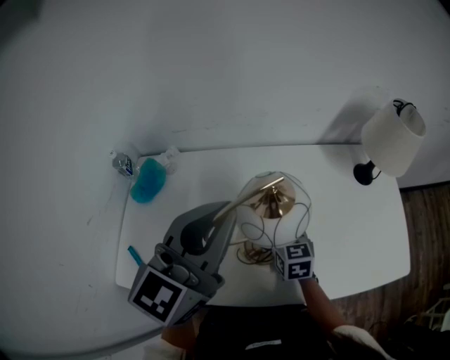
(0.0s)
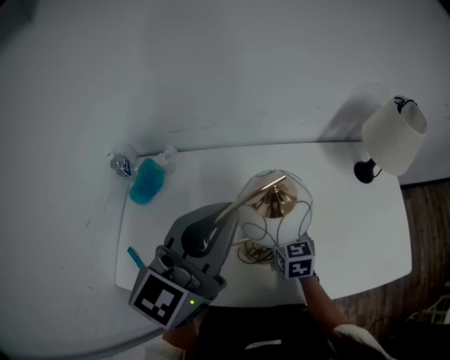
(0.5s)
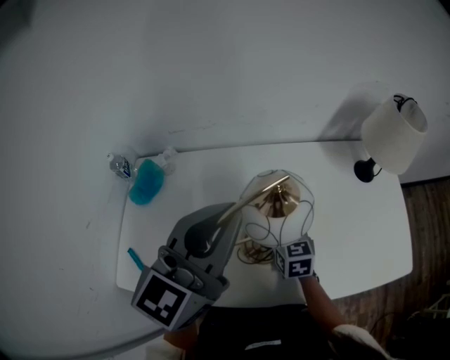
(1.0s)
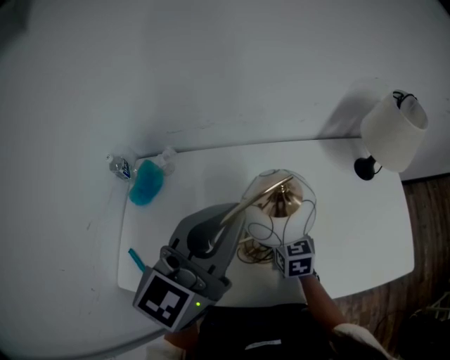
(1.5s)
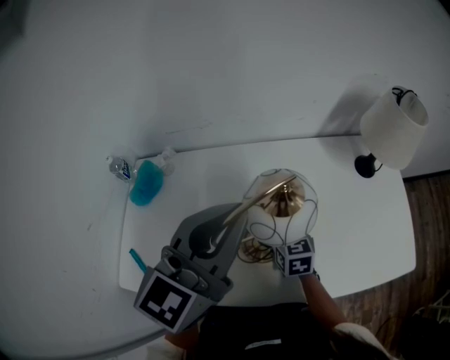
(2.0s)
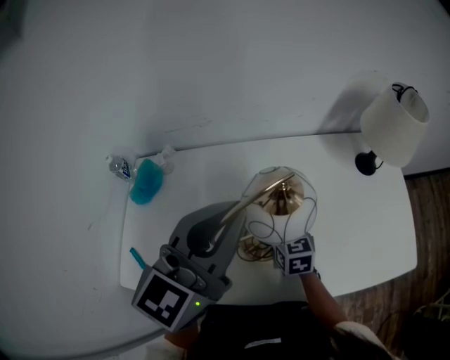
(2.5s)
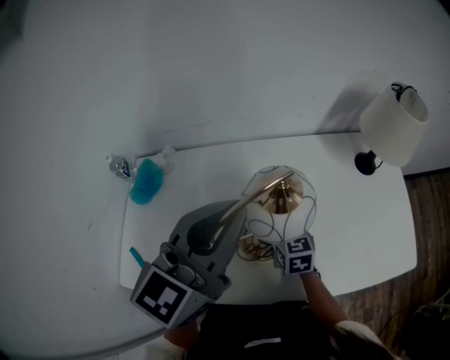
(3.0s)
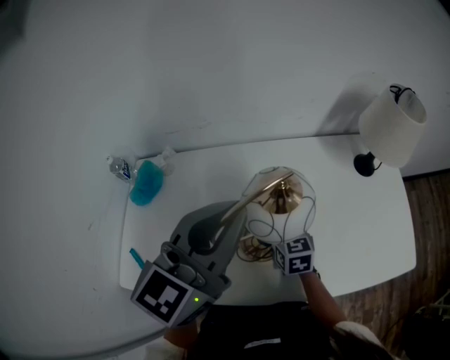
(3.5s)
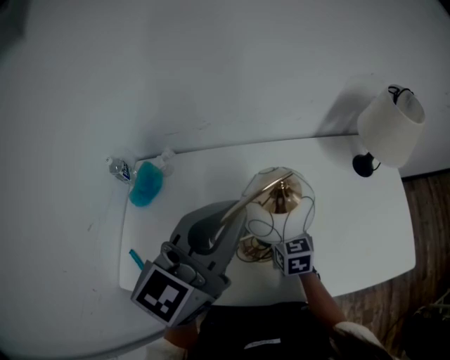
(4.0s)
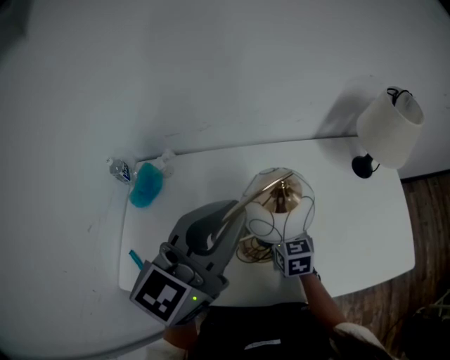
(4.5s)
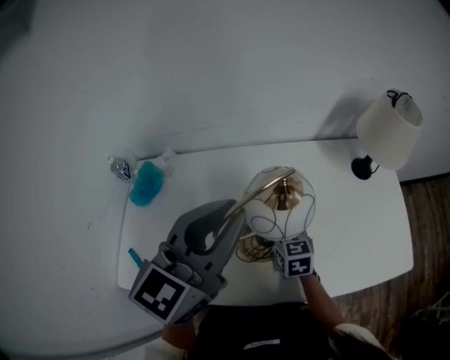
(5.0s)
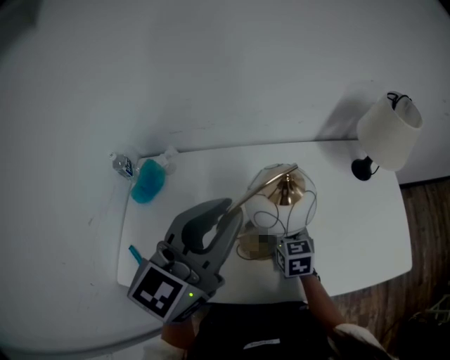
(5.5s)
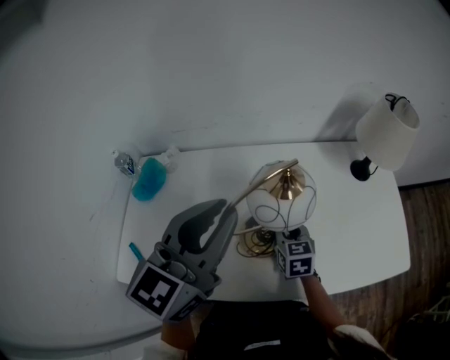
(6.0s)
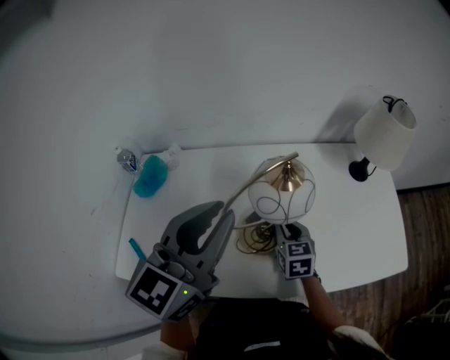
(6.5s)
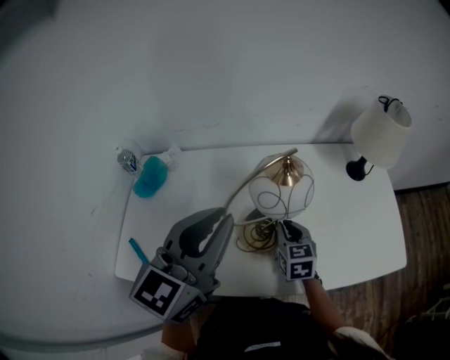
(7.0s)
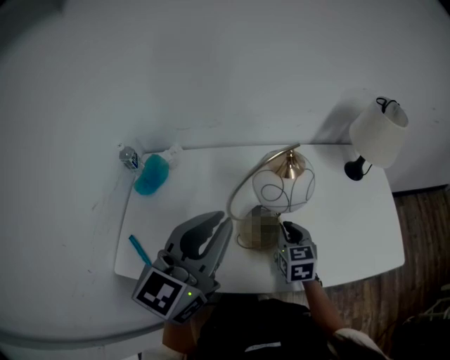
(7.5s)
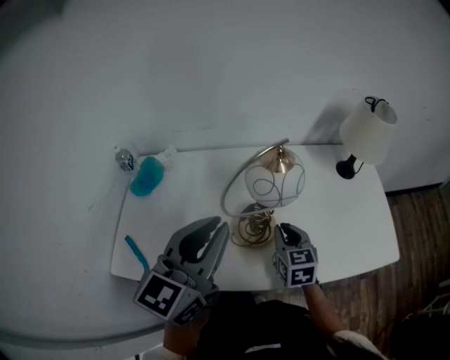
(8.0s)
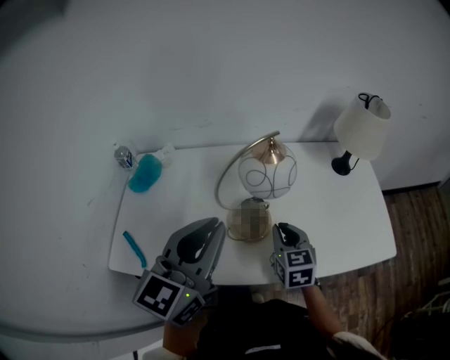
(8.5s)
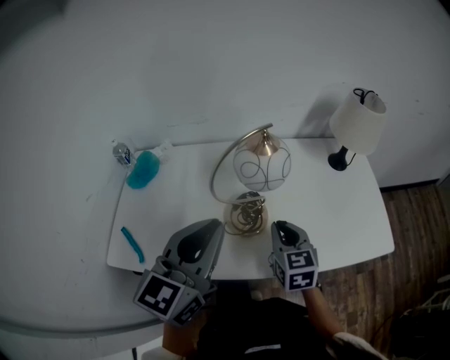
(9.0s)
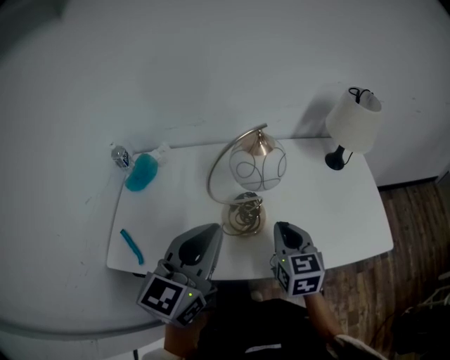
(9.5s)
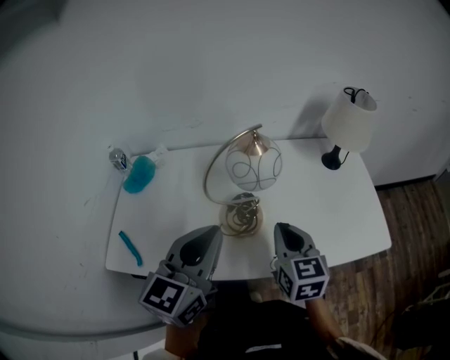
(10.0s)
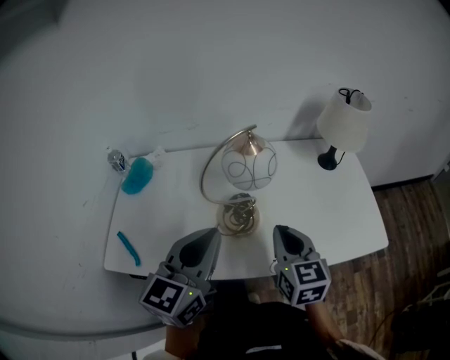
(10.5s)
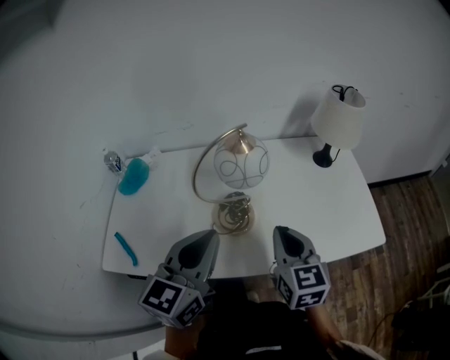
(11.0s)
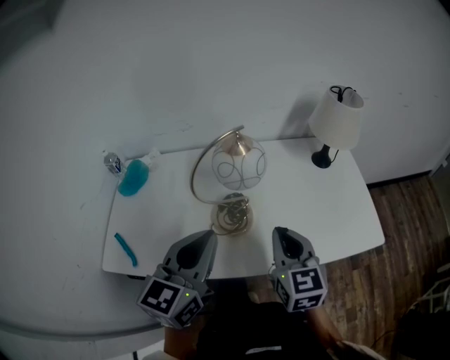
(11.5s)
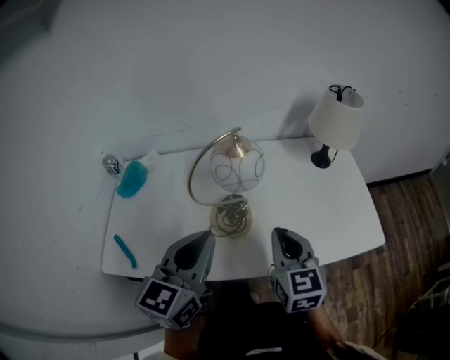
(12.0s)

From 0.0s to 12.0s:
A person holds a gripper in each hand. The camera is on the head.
From 0.0s to 2.0s: The grippers stay close to where they were, moving slightly.
From 2.0s to 4.0s: Both grippers stay put.
From 4.0s to 6.0s: The grippers stay close to where they were, moving slightly.
From 6.0s to 8.0s: The left gripper goes approximately 5 cm backward. The right gripper heads backward and upward, covering approximately 10 cm.
From 8.0s to 10.0s: The left gripper shifts by about 5 cm, while the right gripper shifts about 10 cm upward and backward.
From 10.0s to 12.0s: There are only small adjustments of the grippers.

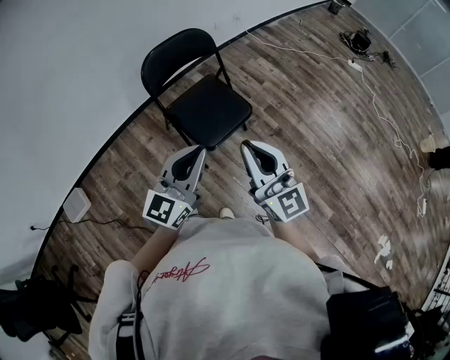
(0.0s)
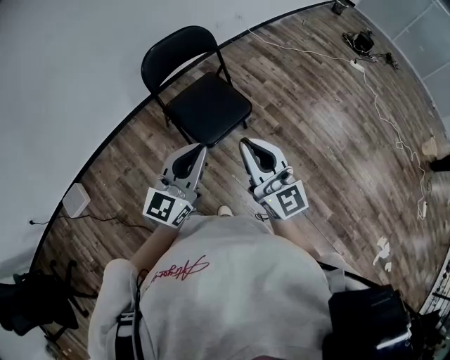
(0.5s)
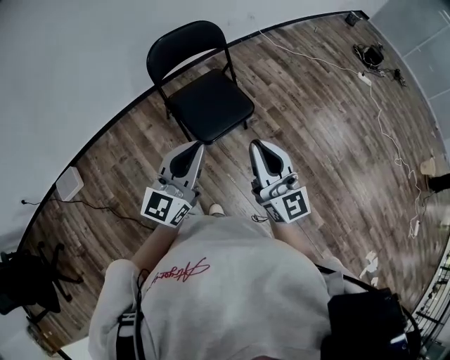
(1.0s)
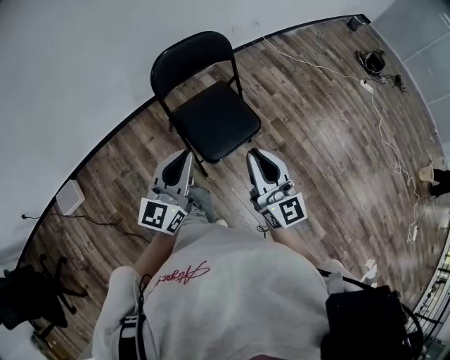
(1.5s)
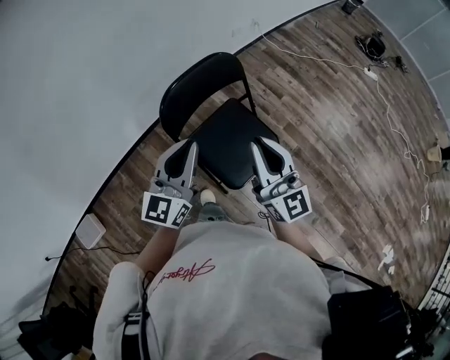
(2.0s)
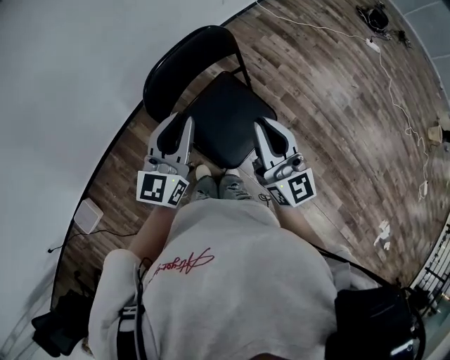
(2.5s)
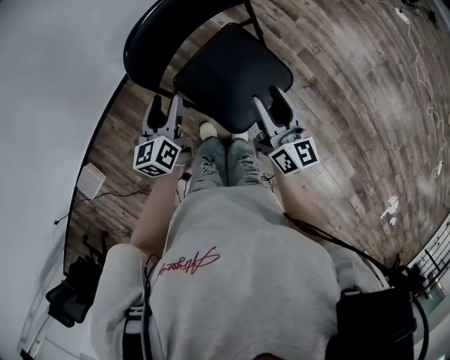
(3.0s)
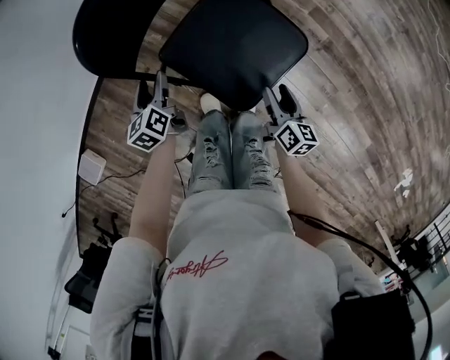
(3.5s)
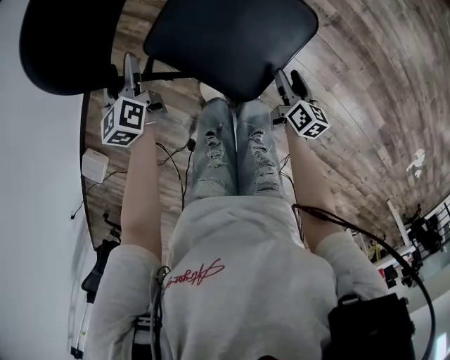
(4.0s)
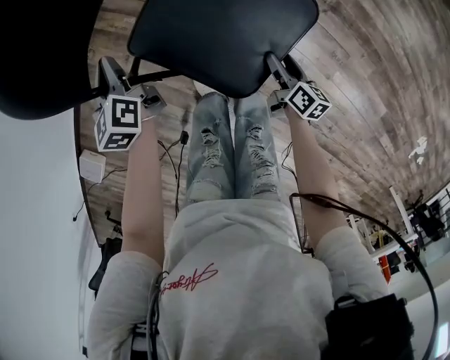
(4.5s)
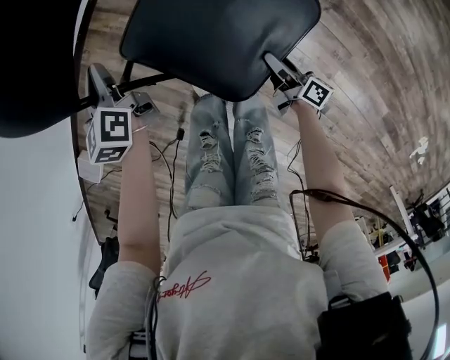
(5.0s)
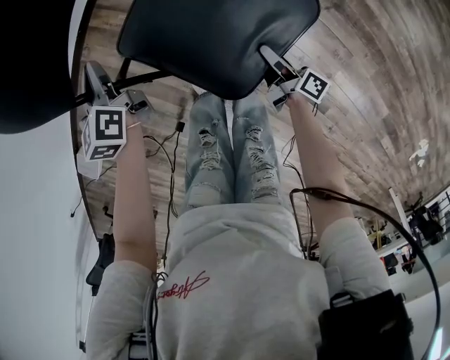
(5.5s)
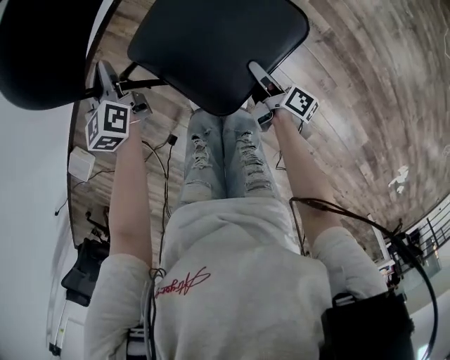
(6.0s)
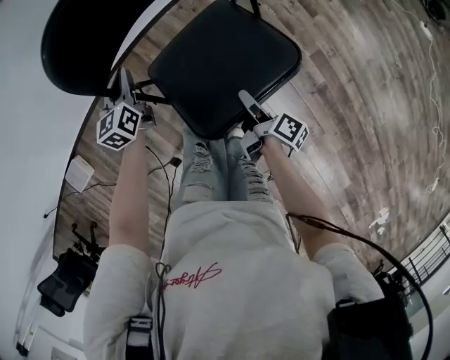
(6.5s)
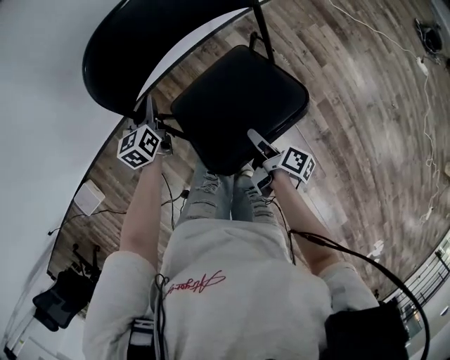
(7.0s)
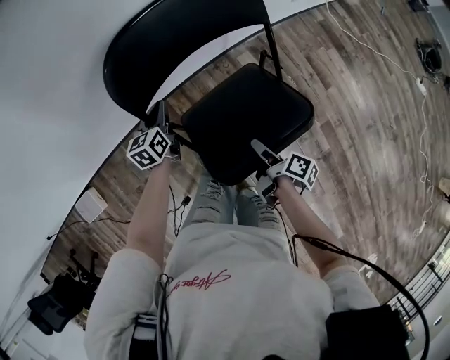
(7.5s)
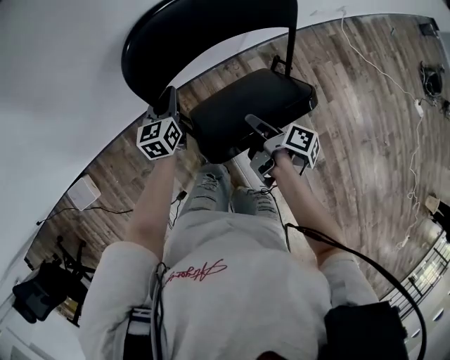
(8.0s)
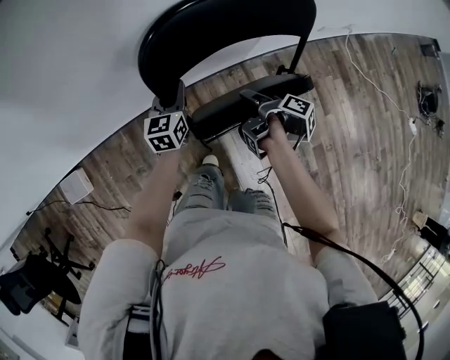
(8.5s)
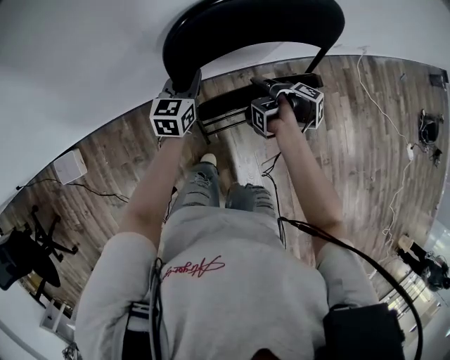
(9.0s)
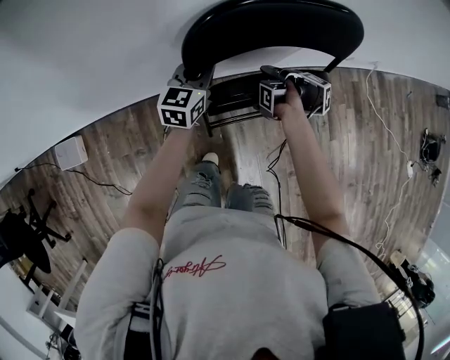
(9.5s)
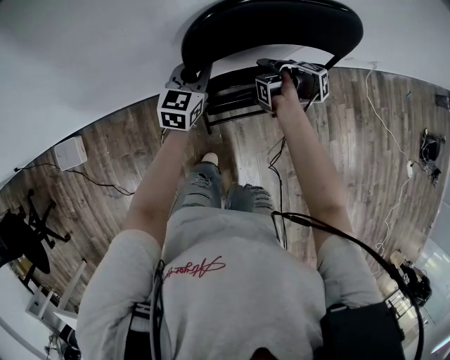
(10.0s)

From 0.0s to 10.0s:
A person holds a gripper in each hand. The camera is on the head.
From 0.0s to 2.0s: The right gripper travels forward by some 25 cm, while the left gripper travels forward and to the left by roughly 30 cm.
From 2.0s to 4.0s: The grippers both shift downward by about 50 cm. The right gripper tips its fingers downward by approximately 50 degrees, and opens up, while the left gripper points its fingers approximately 40 degrees further downward, and opens its fingers.
From 4.0s to 6.0s: The right gripper moves forward, roughly 10 cm, and turns by roughly 40 degrees. The left gripper shifts by some 5 cm, and closes.
From 6.0s to 8.0s: The right gripper moves forward, upward and to the left, approximately 40 cm, changes its angle by approximately 20 degrees, and closes; the left gripper moves forward and to the left, about 20 cm.
From 8.0s to 10.0s: The right gripper travels forward by approximately 20 cm; the left gripper goes roughly 5 cm upward.

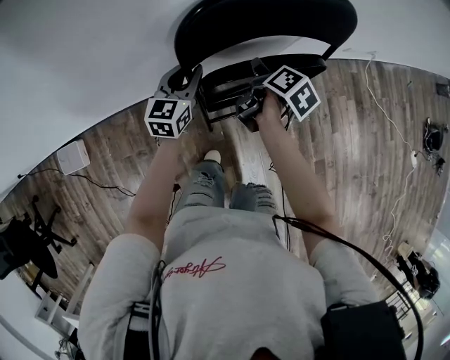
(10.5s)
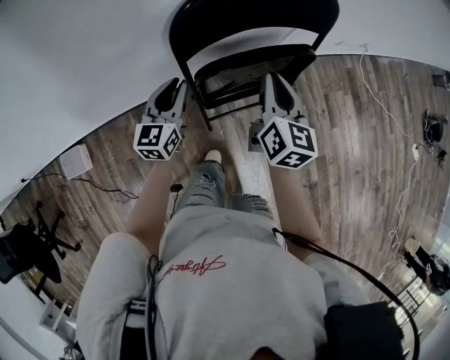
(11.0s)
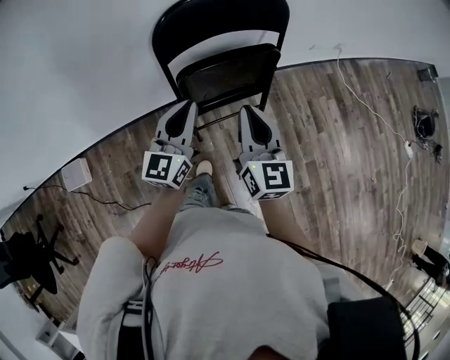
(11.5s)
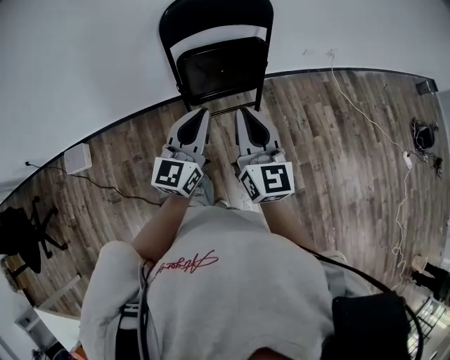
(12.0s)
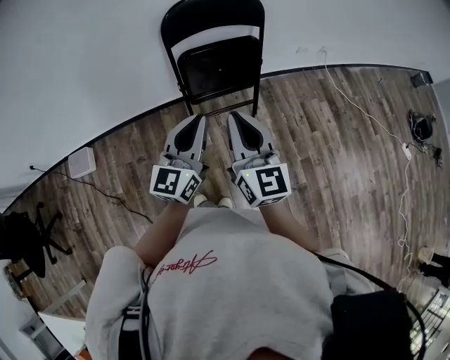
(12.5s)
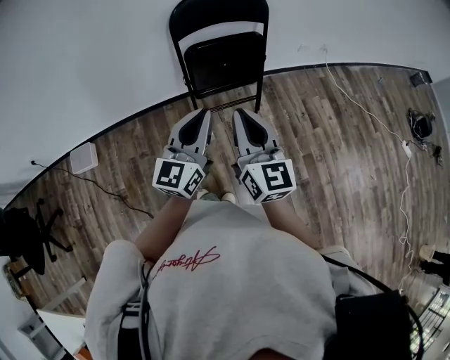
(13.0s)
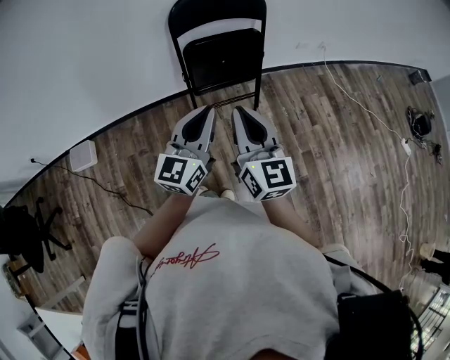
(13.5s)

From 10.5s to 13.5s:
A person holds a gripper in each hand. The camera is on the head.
From 10.5s to 12.0s: The left gripper travels backward, upward and to the right by approximately 40 cm, and swivels approximately 20 degrees, while the right gripper moves backward and upward, some 40 cm, points its fingers some 40 degrees further upward, and closes up.
From 12.0s to 13.5s: The grippers both shift backward by roughly 10 cm.

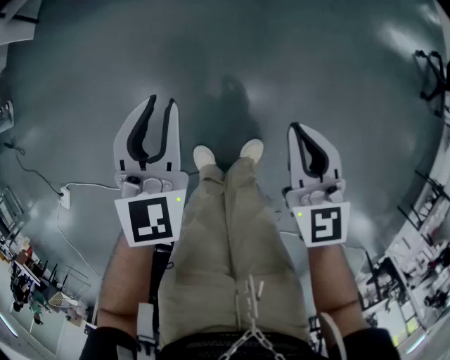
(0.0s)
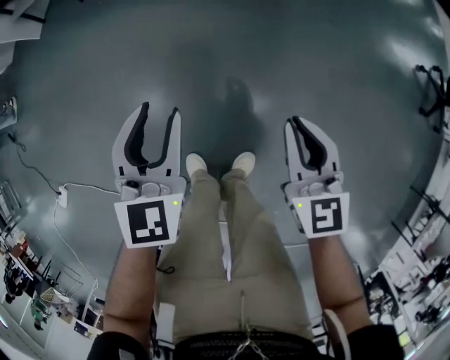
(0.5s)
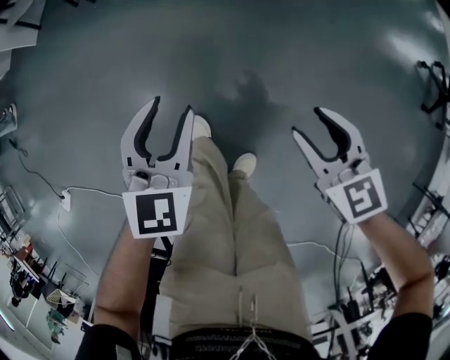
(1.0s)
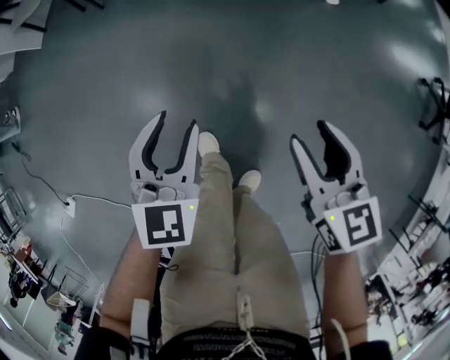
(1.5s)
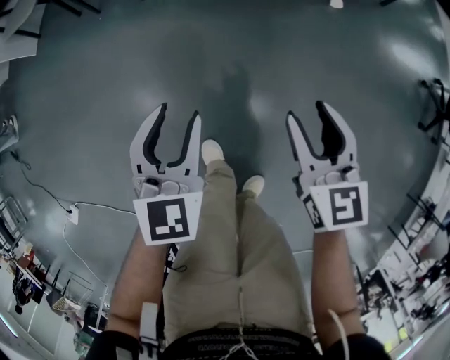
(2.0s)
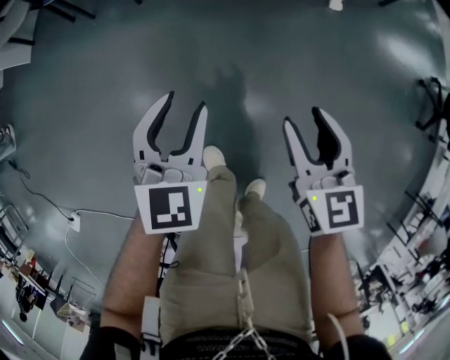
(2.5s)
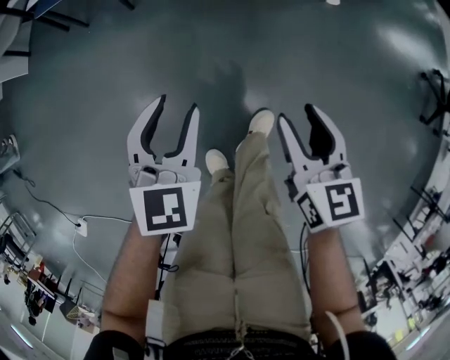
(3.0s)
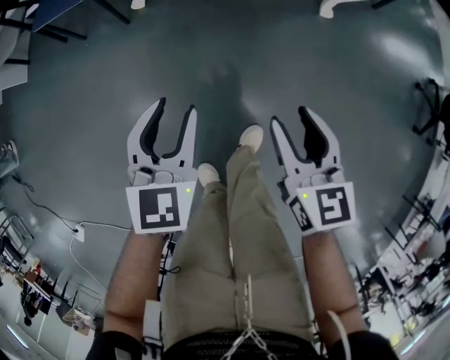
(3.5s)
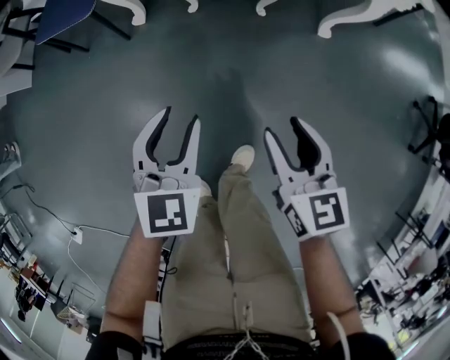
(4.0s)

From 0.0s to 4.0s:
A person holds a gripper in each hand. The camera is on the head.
From 0.0s to 2.0s: The right gripper moves some 5 cm, and opens its fingers.
From 2.0s to 4.0s: The grippers stay close to where they were, moving slightly.
